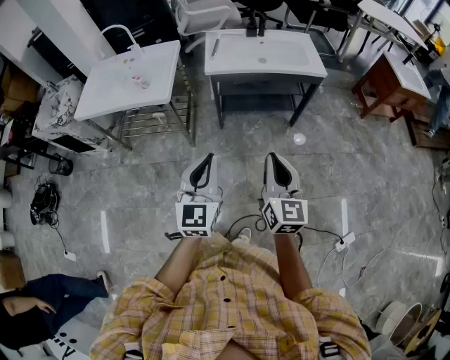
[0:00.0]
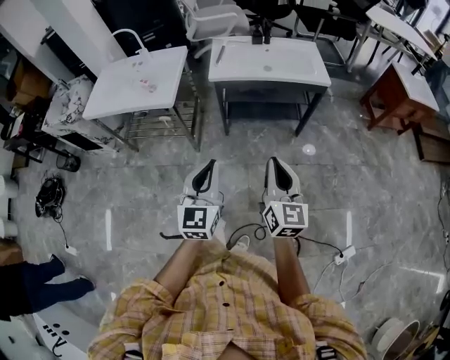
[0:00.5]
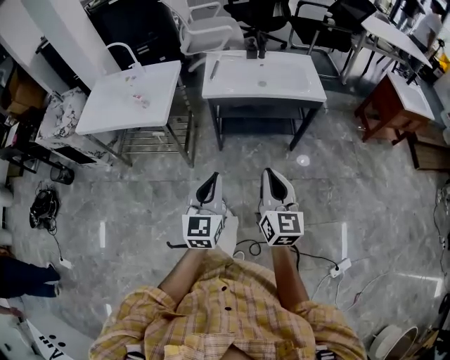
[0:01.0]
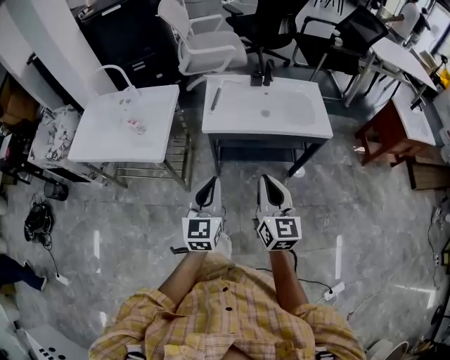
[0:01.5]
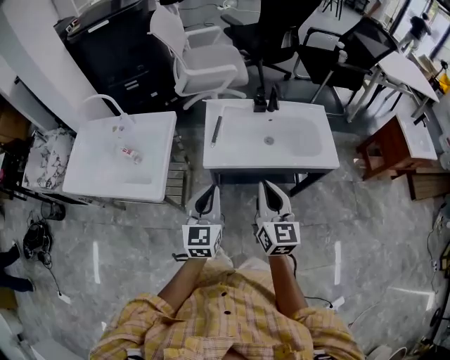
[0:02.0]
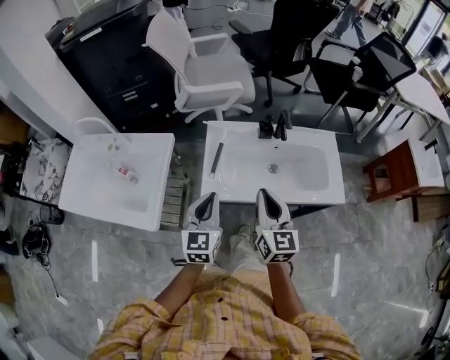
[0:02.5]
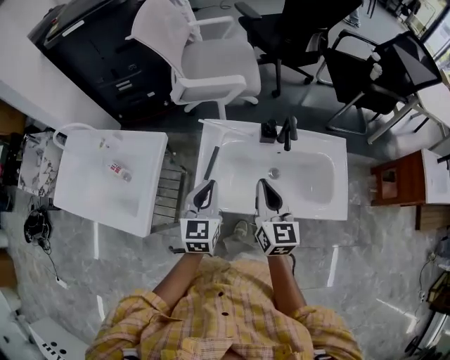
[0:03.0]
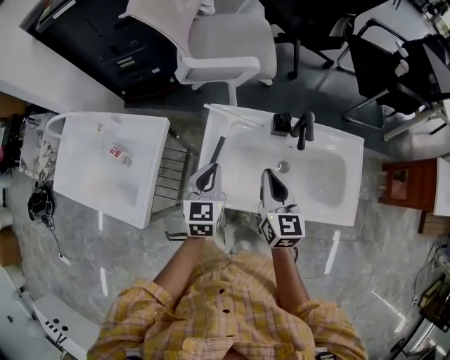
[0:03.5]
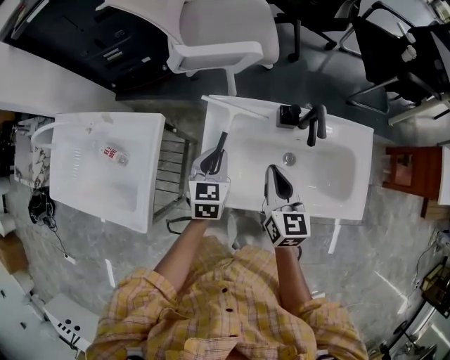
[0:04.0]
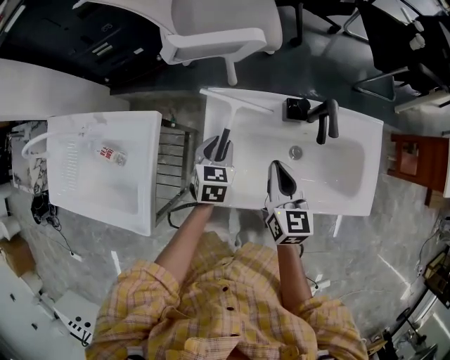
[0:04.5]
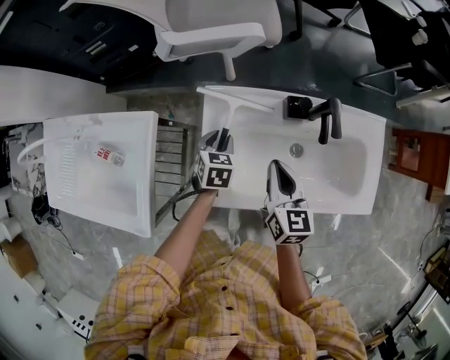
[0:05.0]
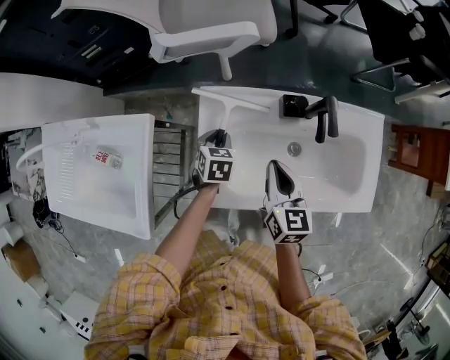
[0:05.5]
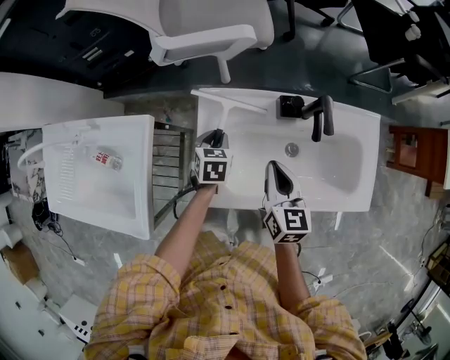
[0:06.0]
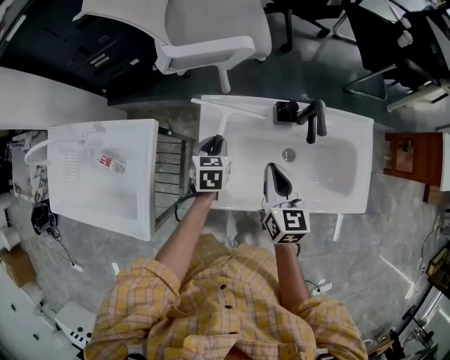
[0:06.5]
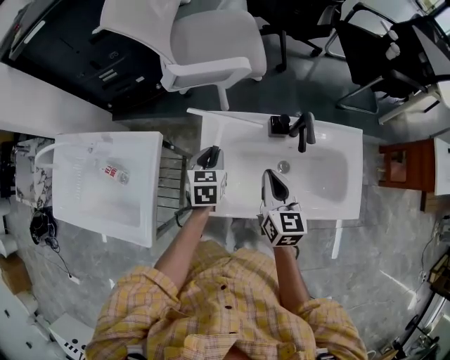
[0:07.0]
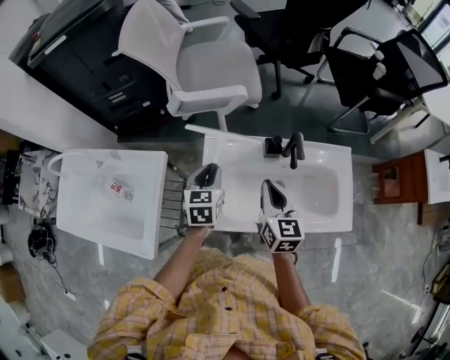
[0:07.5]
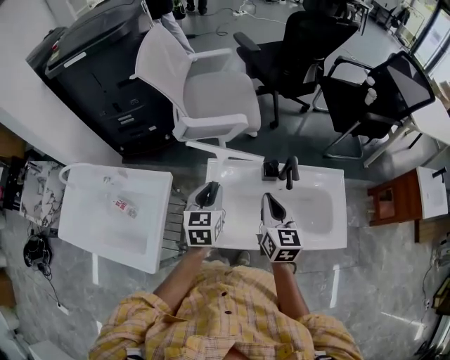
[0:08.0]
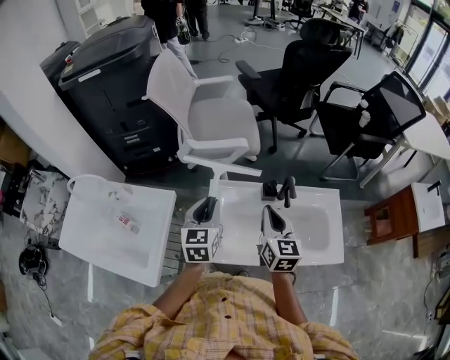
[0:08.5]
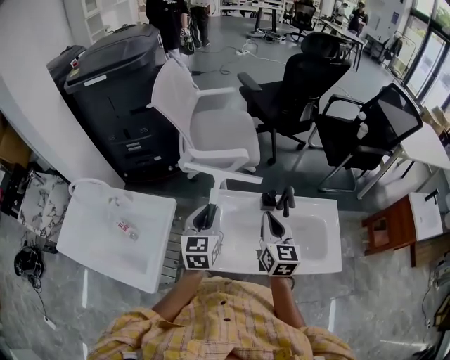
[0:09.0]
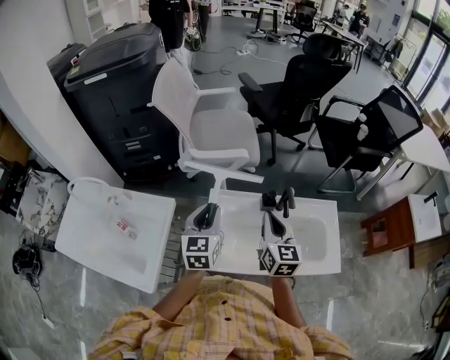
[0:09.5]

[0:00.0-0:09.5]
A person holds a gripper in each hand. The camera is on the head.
0:00.0 to 0:02.0: Both grippers travel together forward, some 40 cm.
0:02.0 to 0:04.0: The two grippers go approximately 40 cm forward and downward. The left gripper turns by about 30 degrees.
0:04.0 to 0:05.5: The left gripper is displaced downward by approximately 15 cm, and changes its angle by roughly 20 degrees; the right gripper moves downward, some 5 cm.
0:05.5 to 0:07.5: The left gripper travels upward by approximately 20 cm, and turns by about 20 degrees. The right gripper goes approximately 10 cm upward.
0:07.5 to 0:09.5: The right gripper is displaced upward by roughly 10 cm. The left gripper travels upward by approximately 15 cm.

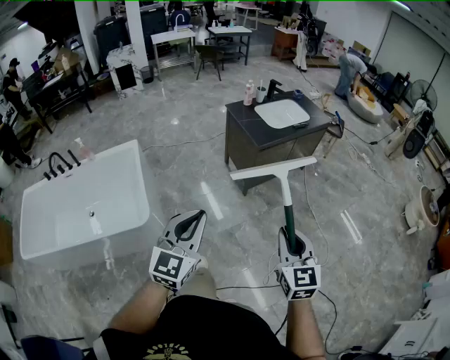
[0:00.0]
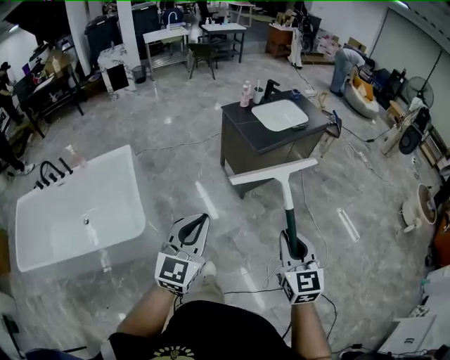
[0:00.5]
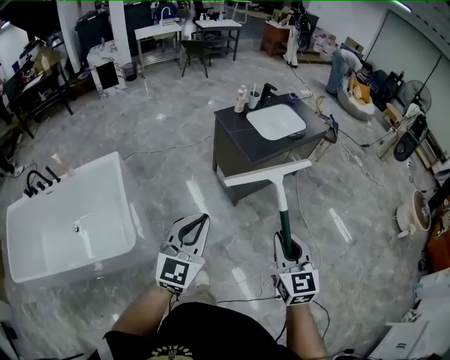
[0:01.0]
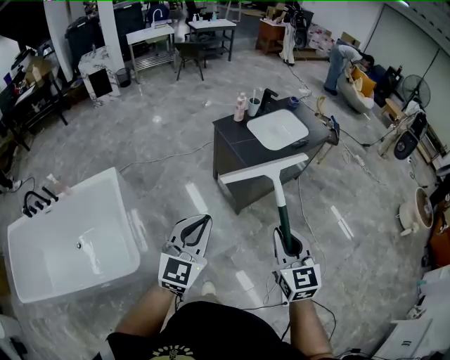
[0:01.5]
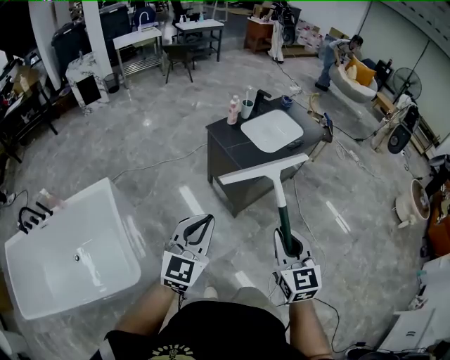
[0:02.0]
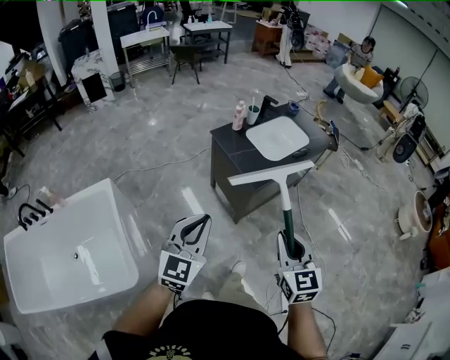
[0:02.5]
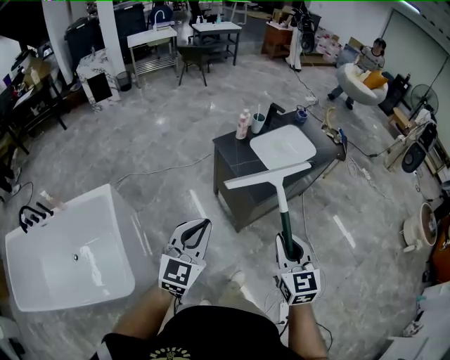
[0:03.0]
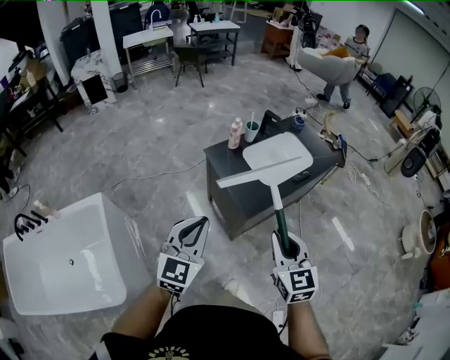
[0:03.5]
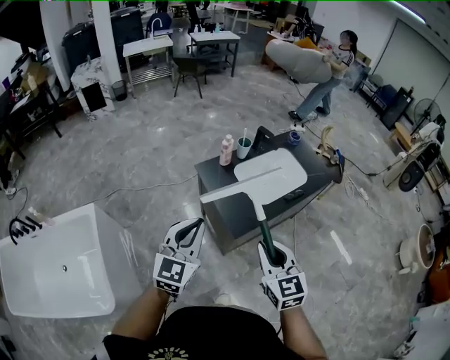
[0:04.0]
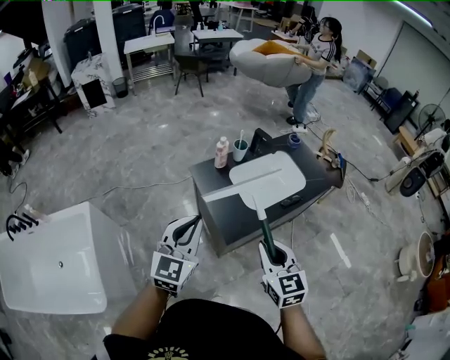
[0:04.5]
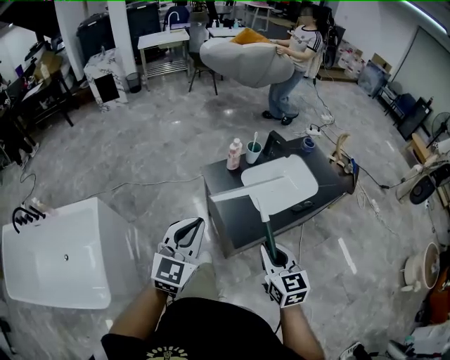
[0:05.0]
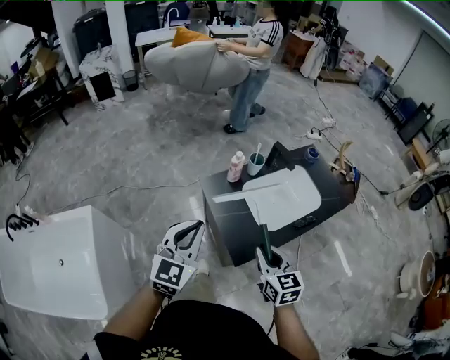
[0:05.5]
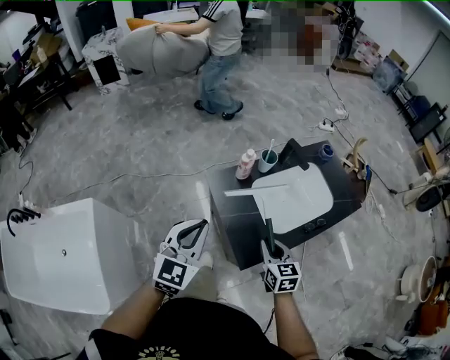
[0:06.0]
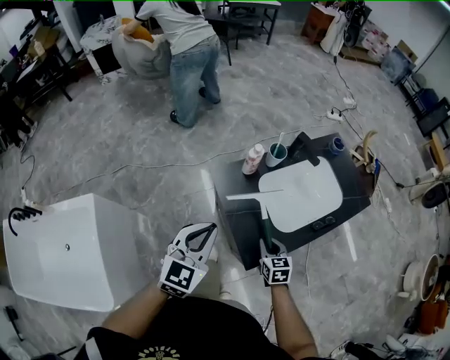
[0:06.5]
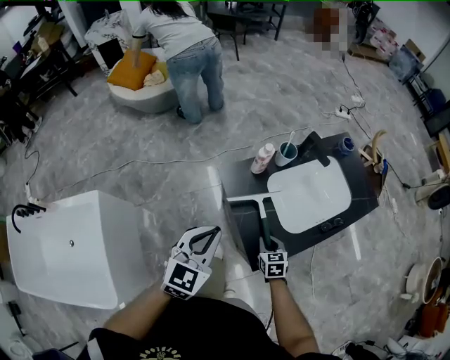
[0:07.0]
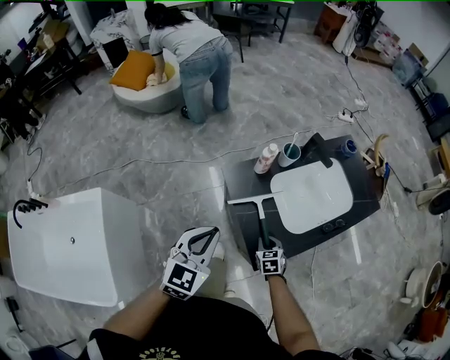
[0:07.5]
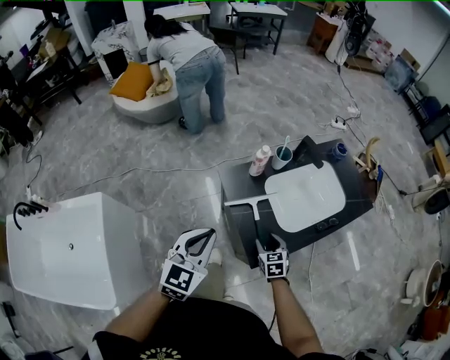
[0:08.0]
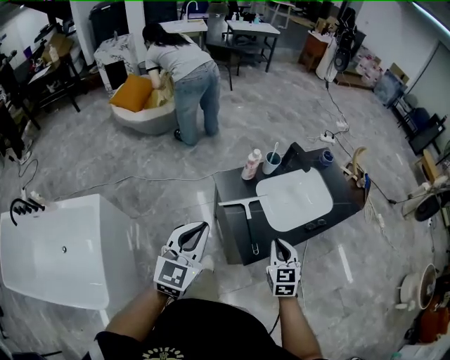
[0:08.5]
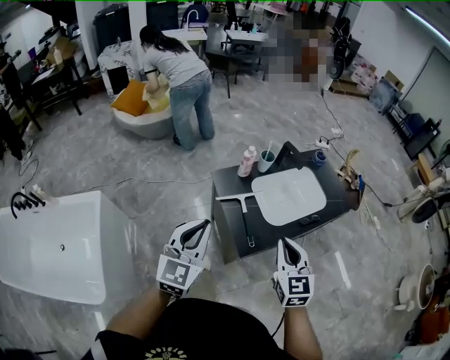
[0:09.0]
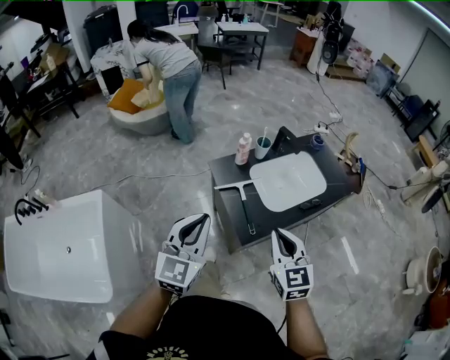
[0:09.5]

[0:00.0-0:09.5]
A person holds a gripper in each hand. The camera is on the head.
0:00.0 to 0:02.0: Both grippers travel together forward, roughly 30 cm.
0:02.0 to 0:04.0: Both grippers move forward, about 25 cm.
0:04.0 to 0:05.5: The right gripper shifts approximately 20 cm forward and downward, while the left gripper goes roughly 15 cm forward.
0:05.5 to 0:07.5: The left gripper shifts about 10 cm downward and forward. Meanwhile the right gripper is displaced downward by about 30 cm, and changes its angle by about 30 degrees.
0:07.5 to 0:09.5: The right gripper shifts roughly 35 cm upward, tilts its fingers about 40 degrees upward, and opens, then closes again. Meanwhile the left gripper travels backward and upward by roughly 20 cm.

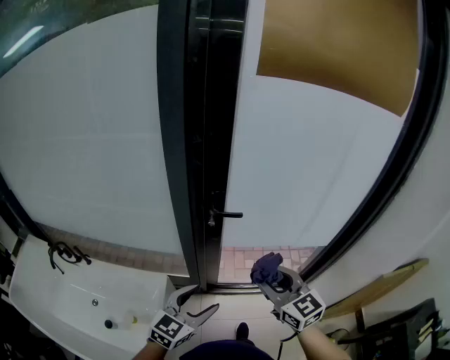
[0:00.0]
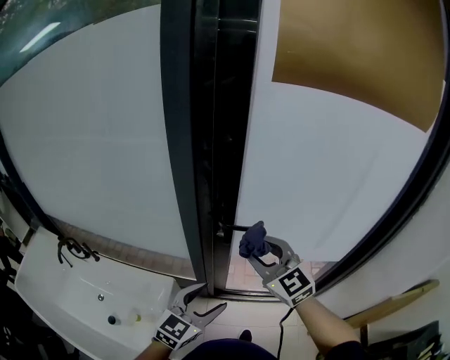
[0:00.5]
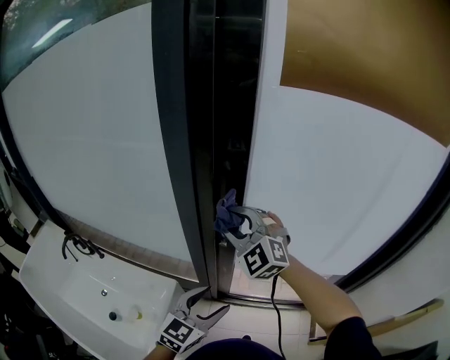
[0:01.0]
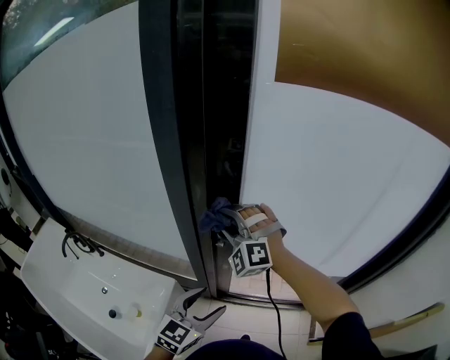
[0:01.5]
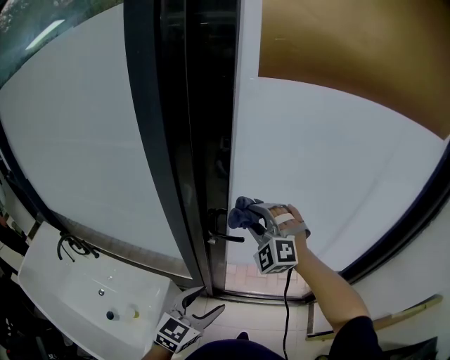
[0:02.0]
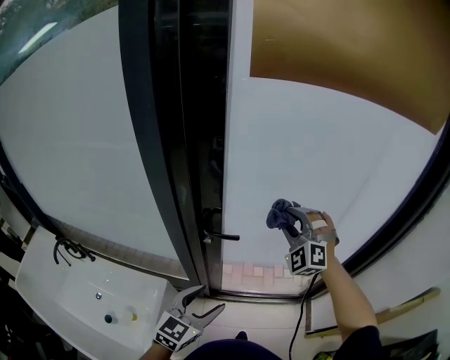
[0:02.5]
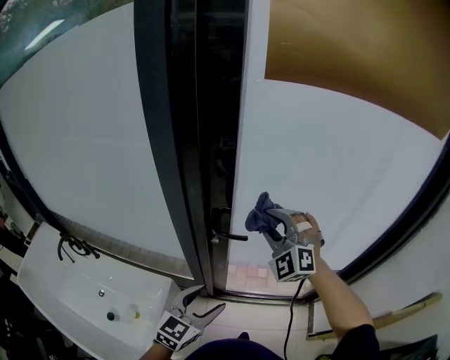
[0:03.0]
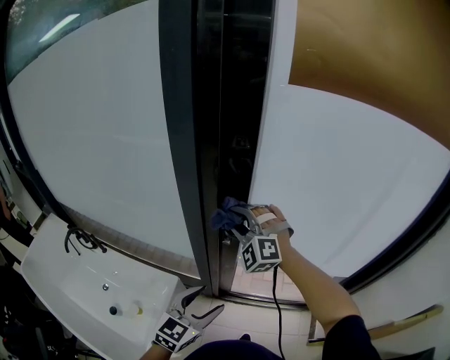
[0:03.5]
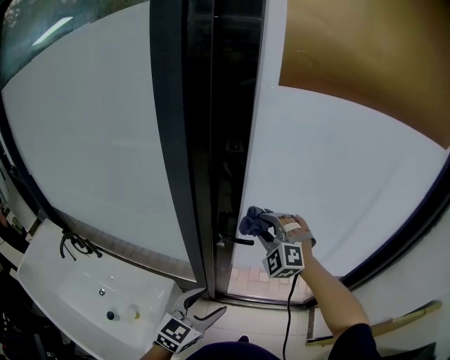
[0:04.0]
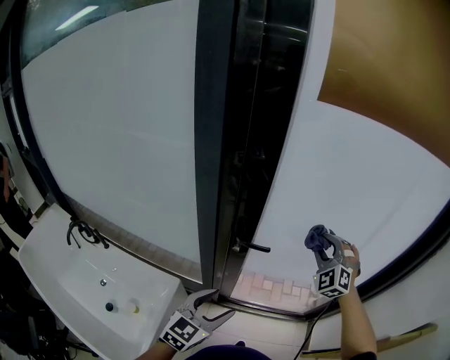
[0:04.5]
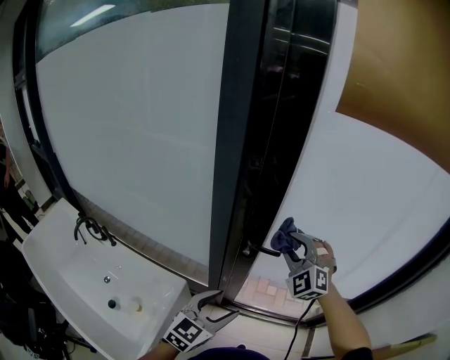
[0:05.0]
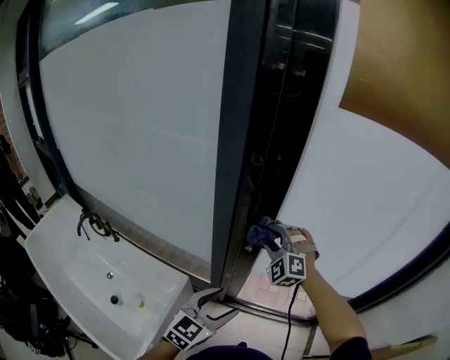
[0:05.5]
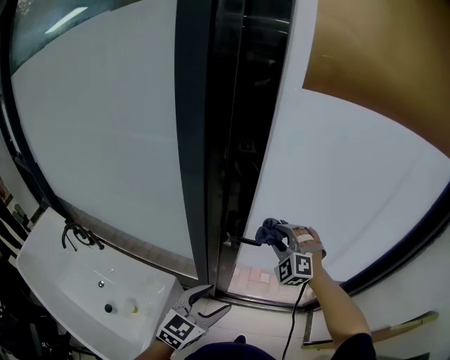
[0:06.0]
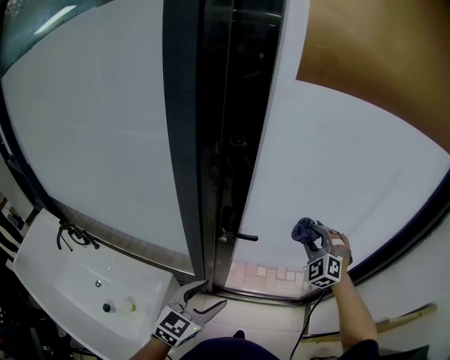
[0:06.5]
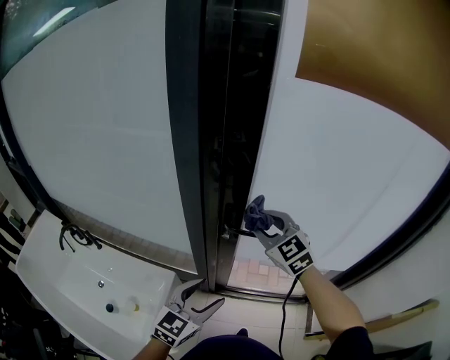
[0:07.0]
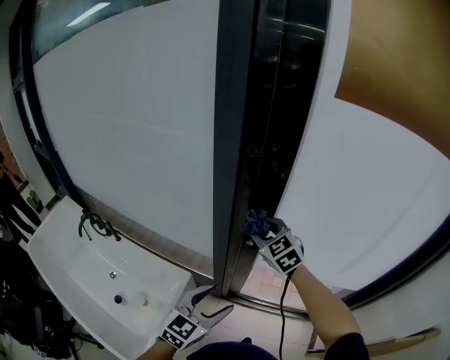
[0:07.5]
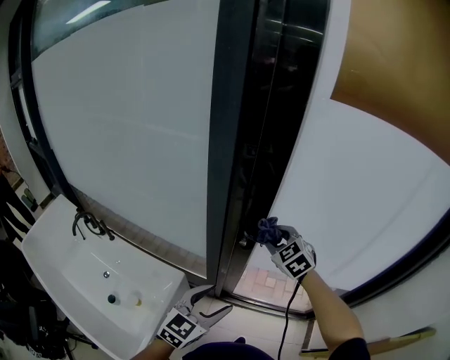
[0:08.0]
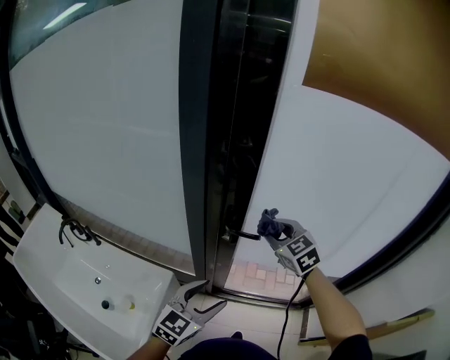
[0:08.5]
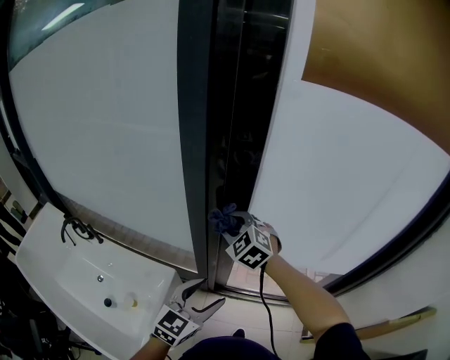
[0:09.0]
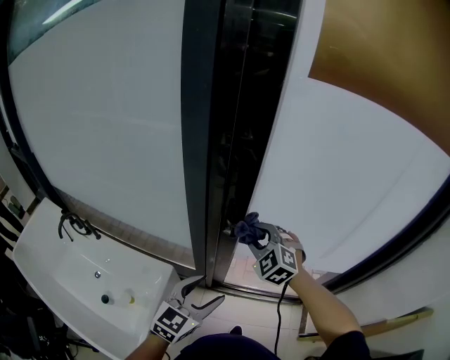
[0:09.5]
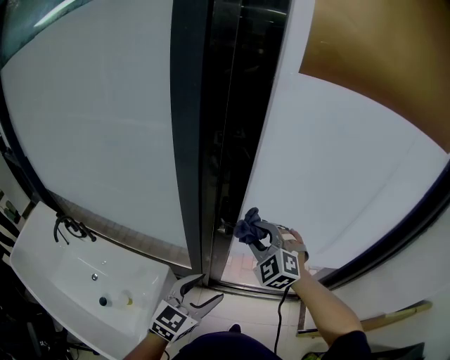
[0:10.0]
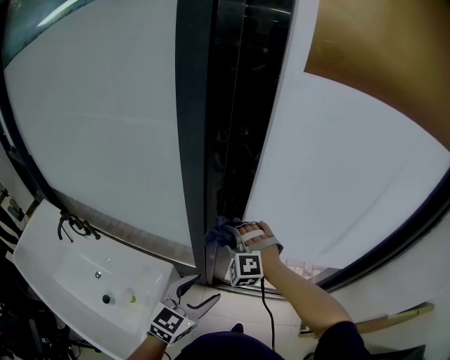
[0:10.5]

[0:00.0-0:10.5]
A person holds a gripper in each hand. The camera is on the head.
0:00.0 to 0:02.0: The right gripper shifts some 25 cm forward, and rolls counterclockwise, seen from behind, by roughly 70 degrees. Meanwhile the left gripper heads forward and to the right, covering roughly 10 cm.
0:02.0 to 0:04.0: The right gripper swings left and right, some 20 cm each way, with 2 reversals.
0:04.0 to 0:06.5: The right gripper moves left and right over approximately 25 cm, changing direction 2 times.
0:06.5 to 0:08.5: The right gripper shifts about 15 cm to the left, and turns by about 50 degrees.
0:08.5 to 0:10.5: The right gripper swings left and right, roughly 15 cm each way, with 2 reversals, and rolls counterclockwise, seen from behind, by roughly 60 degrees.
